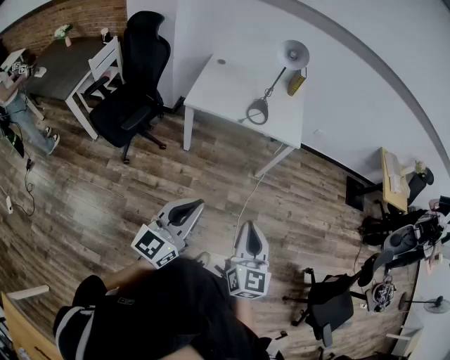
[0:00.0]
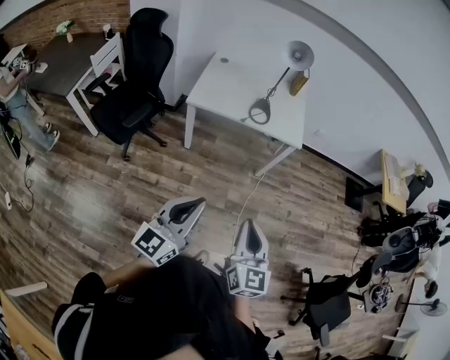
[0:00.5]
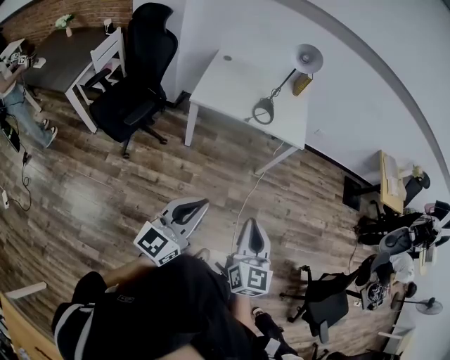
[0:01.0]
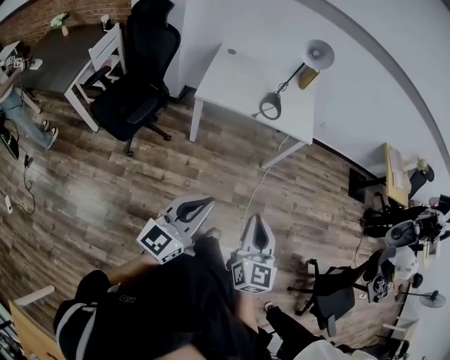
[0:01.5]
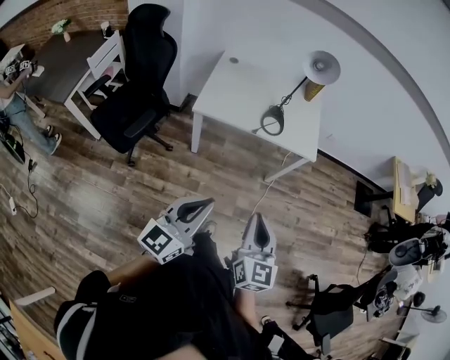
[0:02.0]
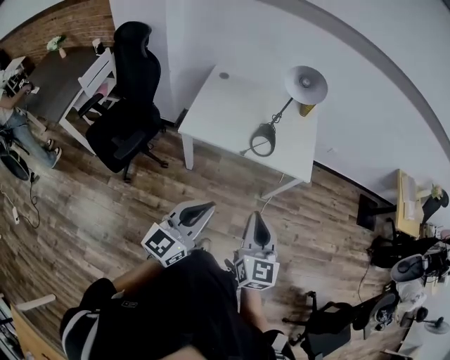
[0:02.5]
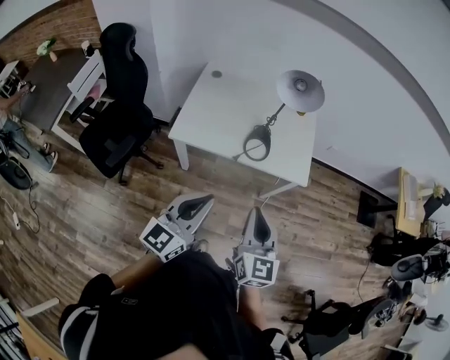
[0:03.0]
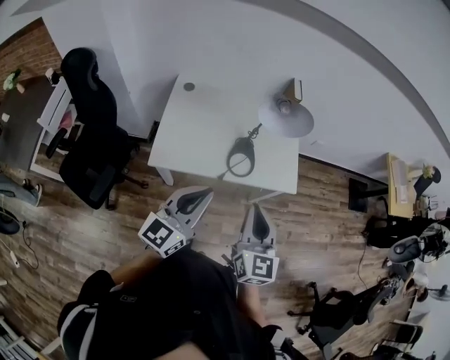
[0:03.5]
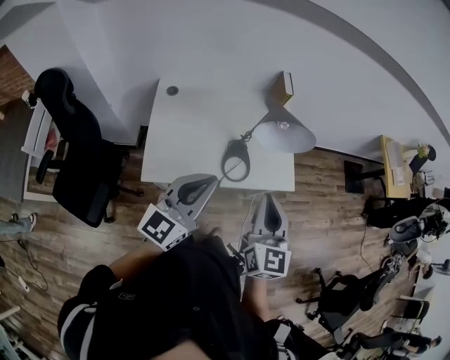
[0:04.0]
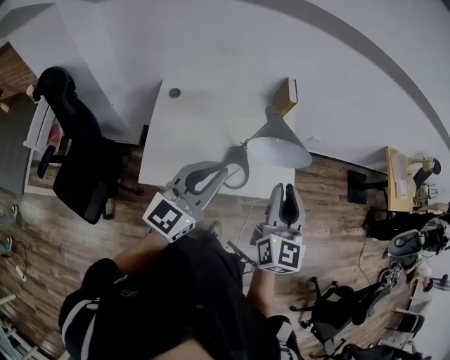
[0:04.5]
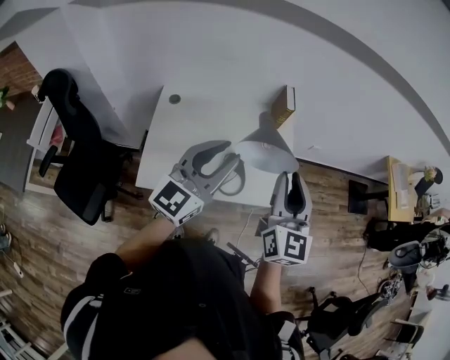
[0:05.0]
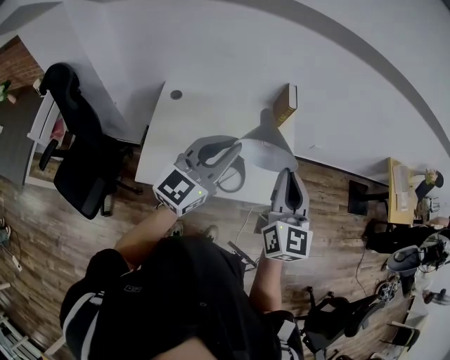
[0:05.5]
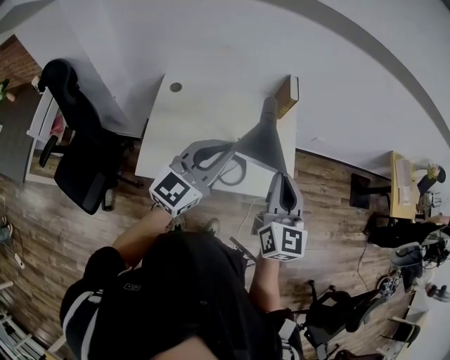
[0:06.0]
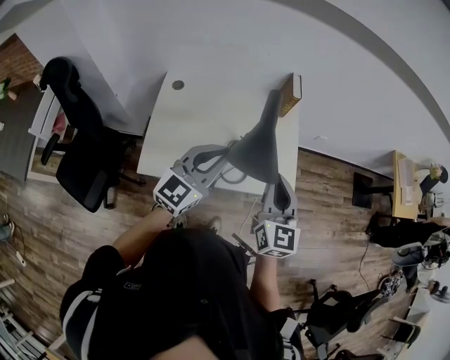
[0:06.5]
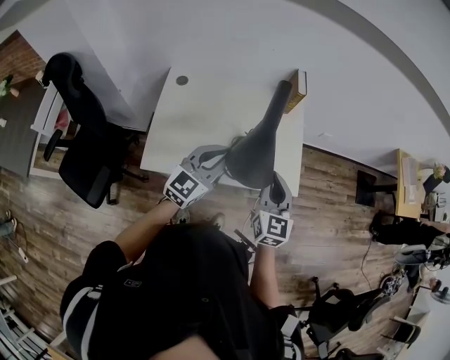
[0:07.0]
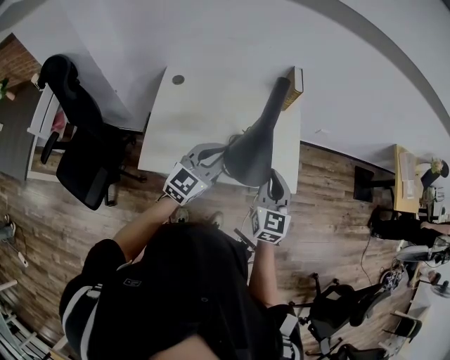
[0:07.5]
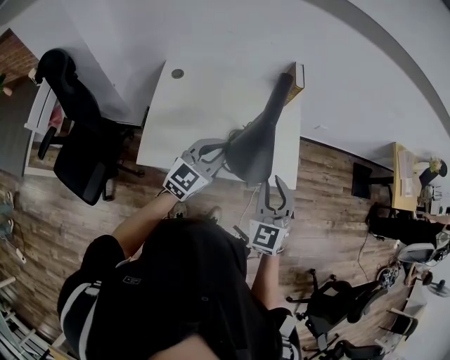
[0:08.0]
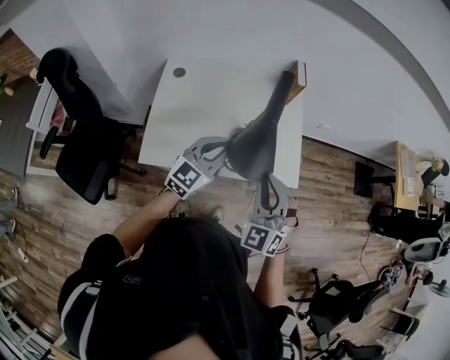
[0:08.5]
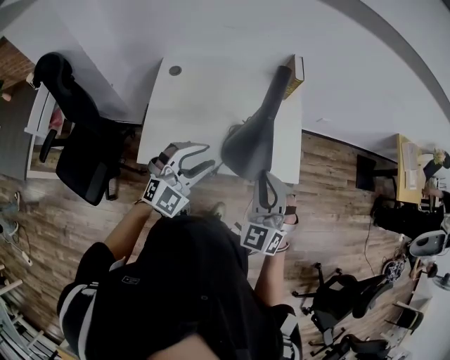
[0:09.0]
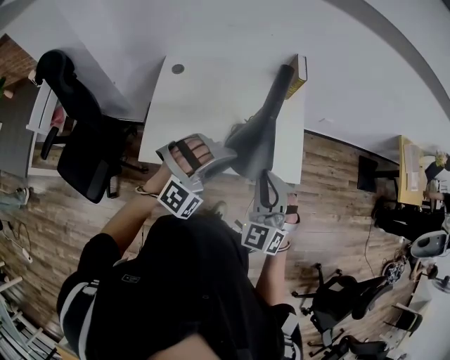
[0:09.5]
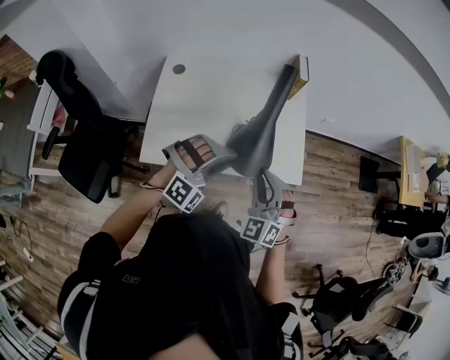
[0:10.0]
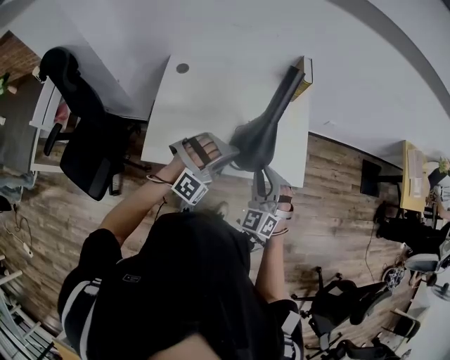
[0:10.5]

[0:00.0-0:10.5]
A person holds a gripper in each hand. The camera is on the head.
0:00.0 to 0:02.0: The two grippers go some 15 cm forward and to the left.
0:02.0 to 0:04.0: The pair of grippers is taken forward, about 40 cm.
0:04.0 to 0:06.5: Both grippers travel together forward, about 10 cm.
0:06.5 to 0:08.5: The right gripper changes place by about 5 cm, and twists approximately 50 degrees counterclockwise, seen from behind; the left gripper is displaced downward by about 10 cm.
0:08.5 to 0:10.5: The right gripper moves downward, some 10 cm. Meanwhile the left gripper moves downward, some 5 cm, rotates around the line of its fingers by roughly 80 degrees, clockwise from behind, and opens up.

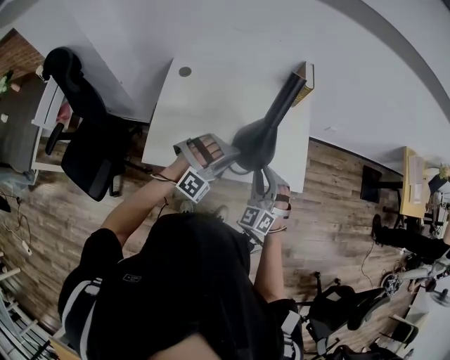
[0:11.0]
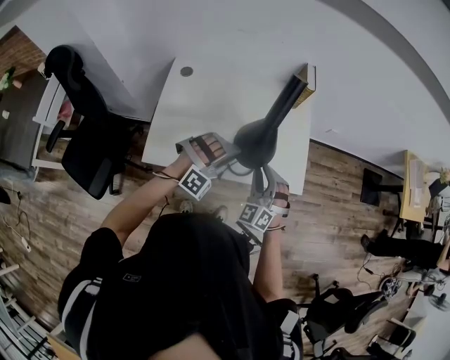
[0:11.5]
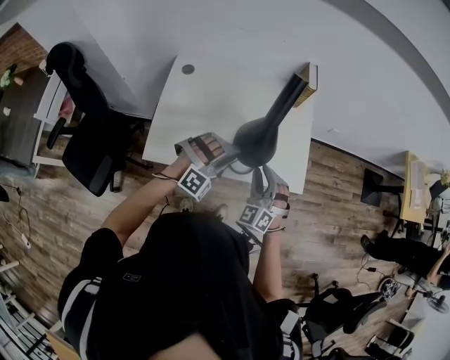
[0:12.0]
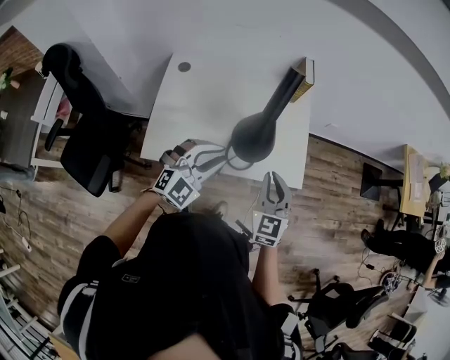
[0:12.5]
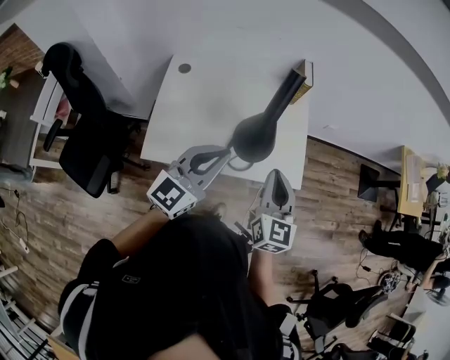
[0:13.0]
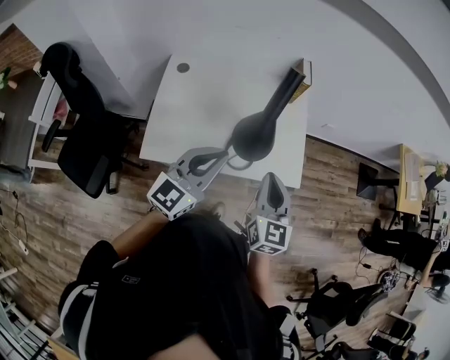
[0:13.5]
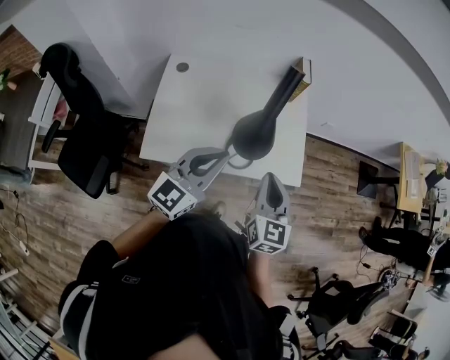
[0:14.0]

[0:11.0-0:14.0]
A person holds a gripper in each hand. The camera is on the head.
0:11.0 to 0:12.5: Both grippers move upward, roughly 5 cm. The left gripper rolls counterclockwise, seen from behind, by approximately 50 degrees. The right gripper rotates about 40 degrees.
0:12.5 to 0:14.0: The left gripper goes approximately 10 cm upward, swivels some 40 degrees, and closes its fingers. Meanwhile the right gripper changes place by roughly 5 cm.

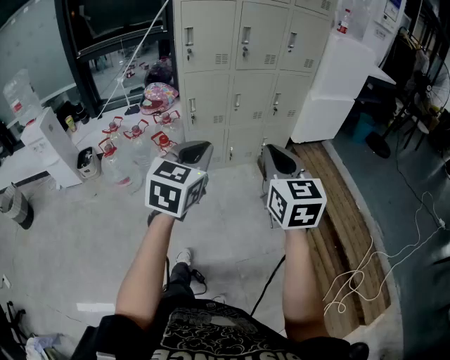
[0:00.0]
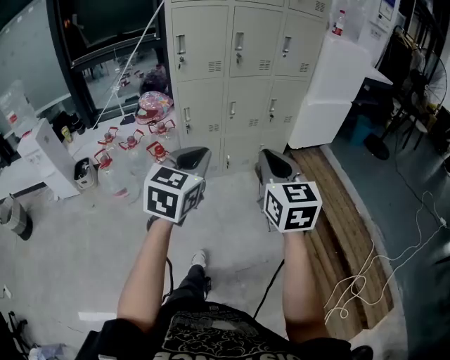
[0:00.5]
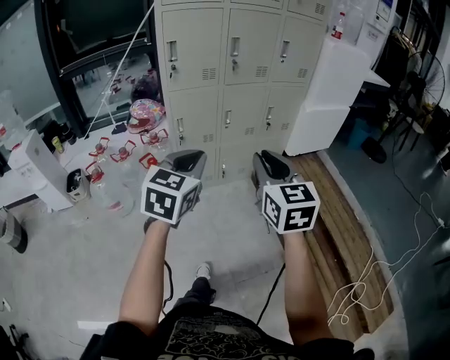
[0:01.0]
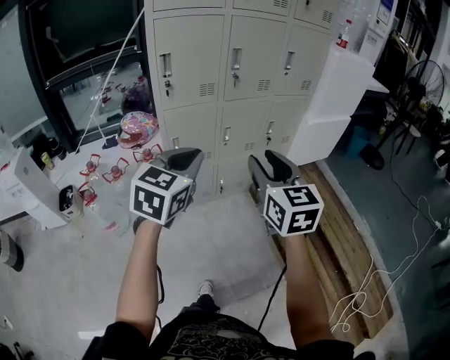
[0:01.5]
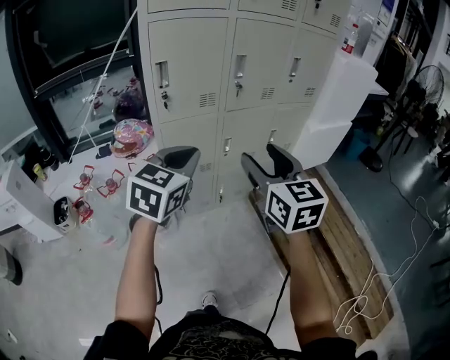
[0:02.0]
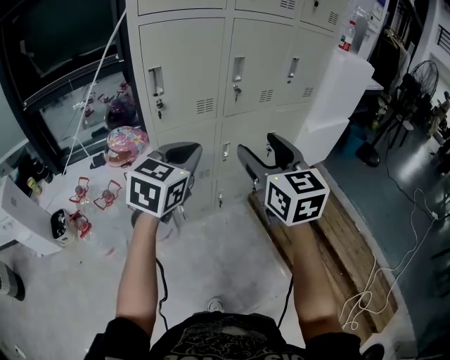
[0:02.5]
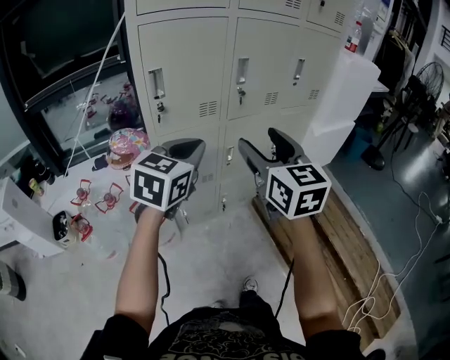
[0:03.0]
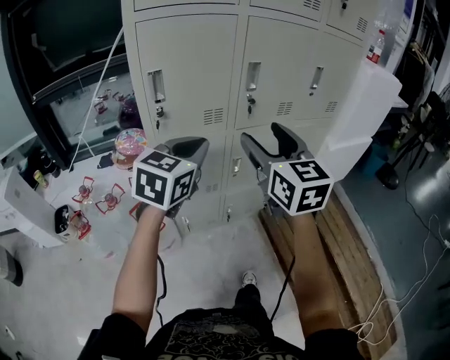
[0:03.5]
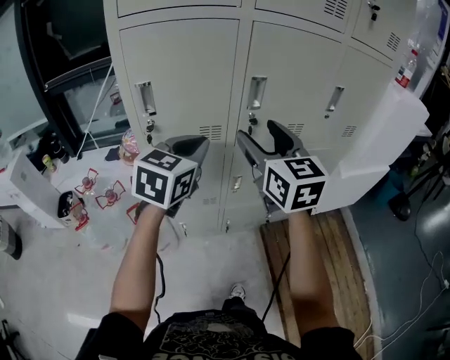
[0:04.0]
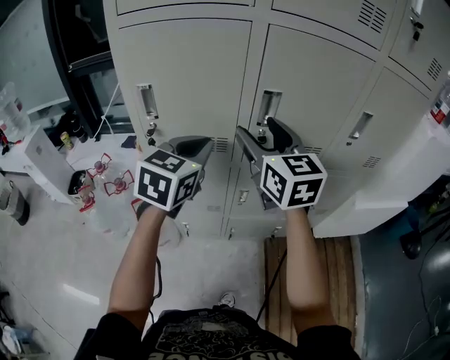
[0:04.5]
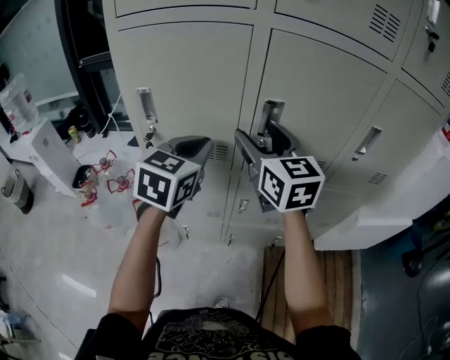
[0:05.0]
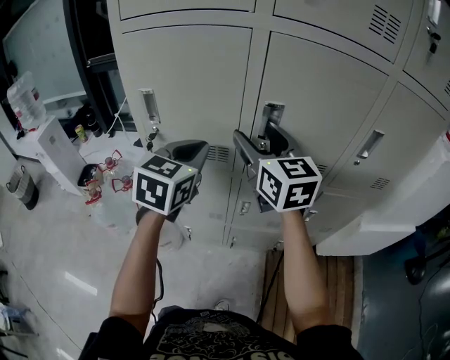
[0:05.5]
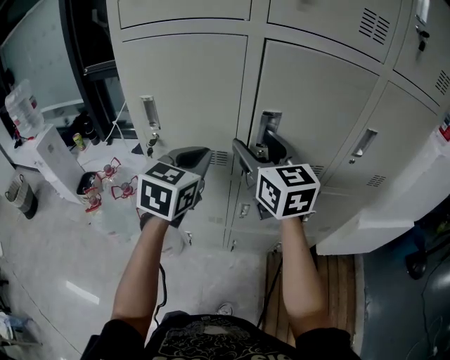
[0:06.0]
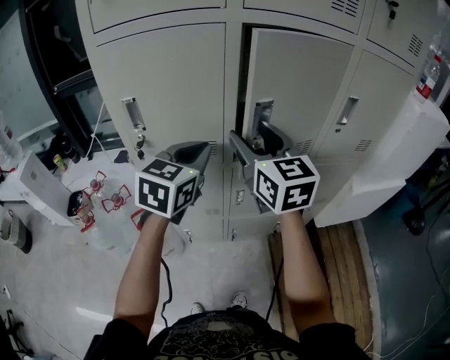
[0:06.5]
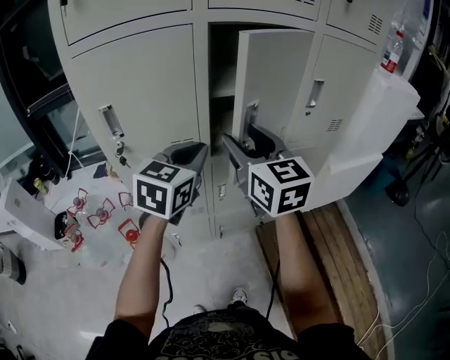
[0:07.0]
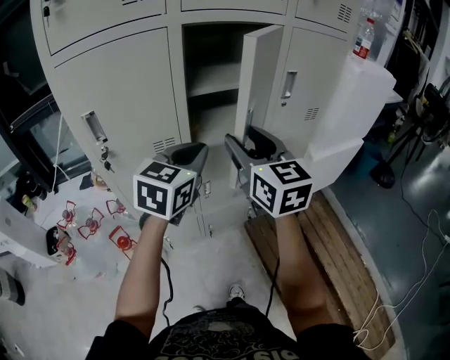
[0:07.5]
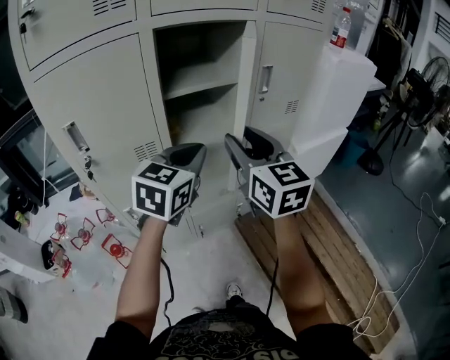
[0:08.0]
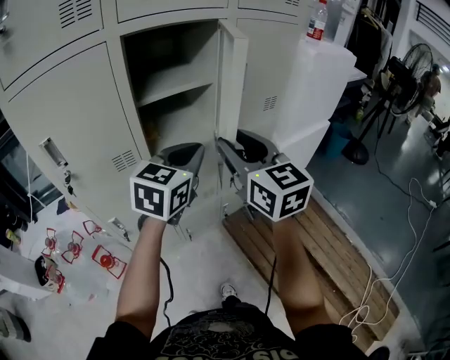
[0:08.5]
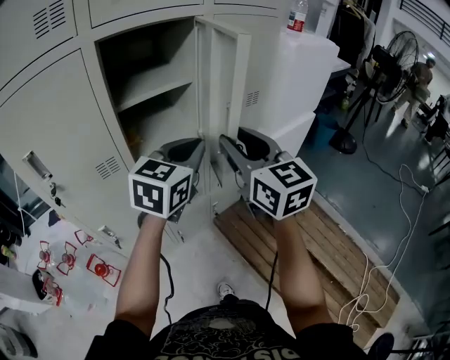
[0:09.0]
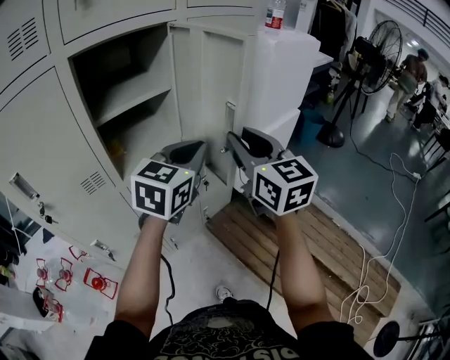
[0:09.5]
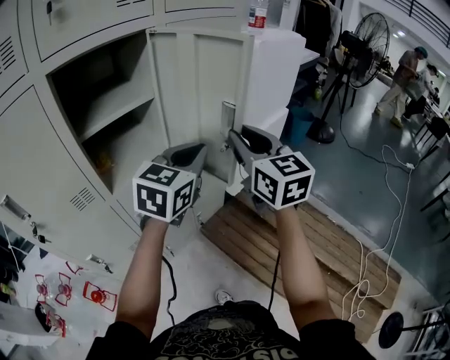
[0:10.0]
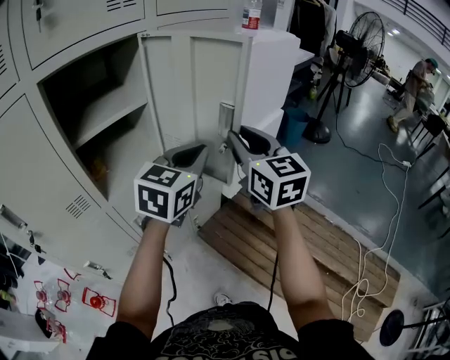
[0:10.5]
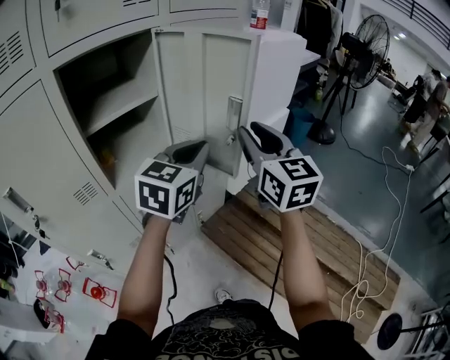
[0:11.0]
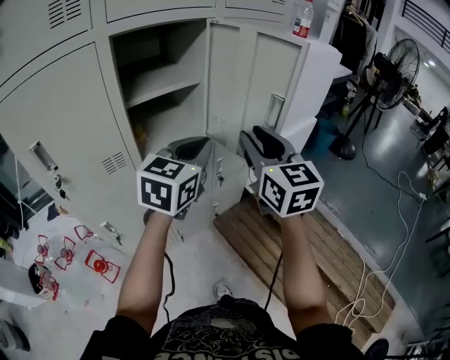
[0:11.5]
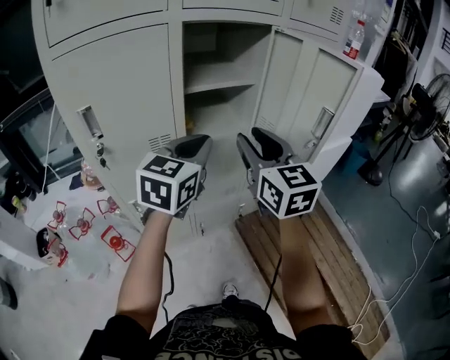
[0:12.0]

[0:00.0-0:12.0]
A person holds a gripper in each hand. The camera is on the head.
0:00.0 to 0:02.0: The two grippers go approximately 30 cm forward. The right gripper opens.
0:02.0 to 0:04.0: Both grippers move forward, approximately 25 cm.
0:04.0 to 0:06.0: The left gripper moves forward, approximately 5 cm; the right gripper goes about 10 cm forward.
0:06.0 to 0:08.0: The left gripper ends up some 15 cm from where it was, and turns by roughly 30 degrees. The right gripper shifts by approximately 20 cm, rotates roughly 30 degrees, and closes its fingers.
0:08.0 to 0:10.0: The two grippers go approximately 20 cm to the right. The left gripper swivels approximately 20 degrees.
0:10.0 to 0:12.0: The two grippers go about 20 cm to the left and backward. The left gripper rotates approximately 20 degrees.

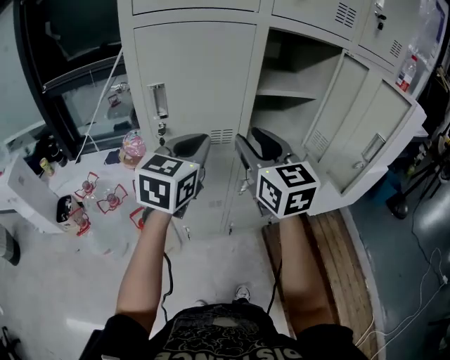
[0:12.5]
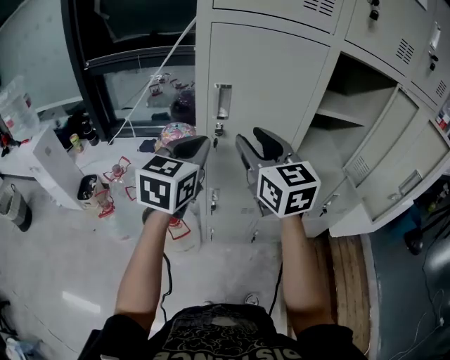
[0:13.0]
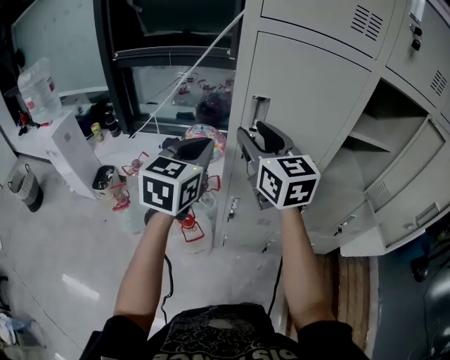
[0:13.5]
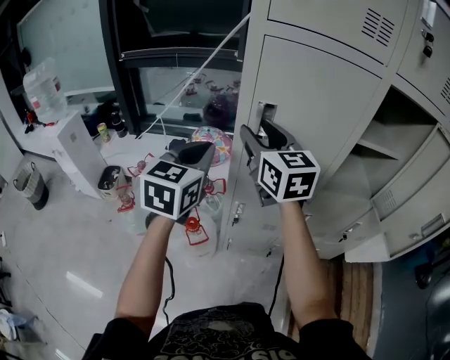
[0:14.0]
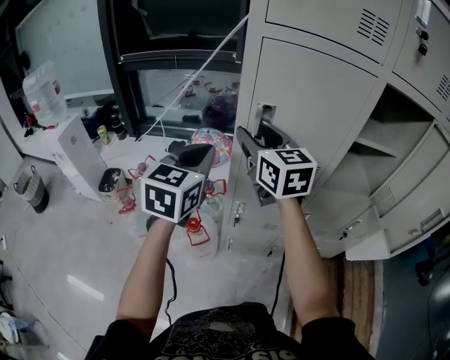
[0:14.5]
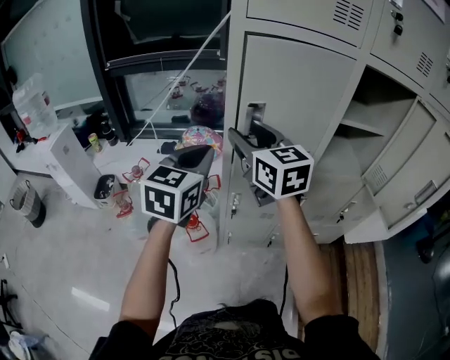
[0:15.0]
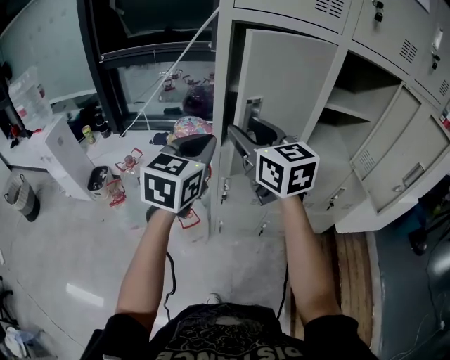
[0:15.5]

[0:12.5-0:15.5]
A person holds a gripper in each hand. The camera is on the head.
0:12.5 to 0:14.0: The right gripper travels to the left and forward by approximately 25 cm. Meanwhile the left gripper heads to the left, covering approximately 20 cm, and rotates about 20 degrees.
0:14.0 to 0:15.5: The grippers both shift backward by about 10 cm.
